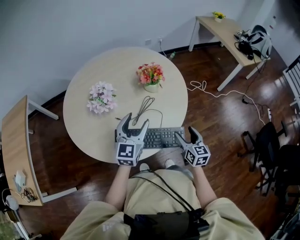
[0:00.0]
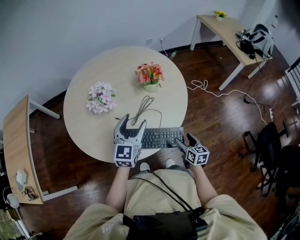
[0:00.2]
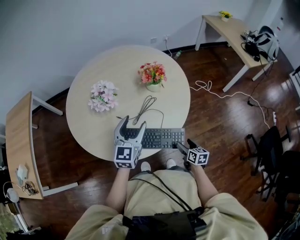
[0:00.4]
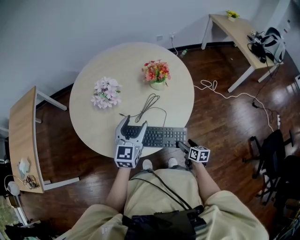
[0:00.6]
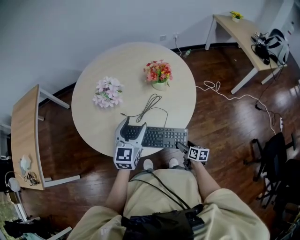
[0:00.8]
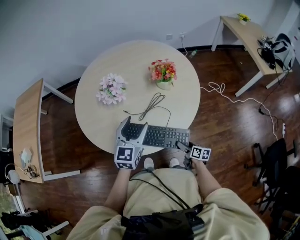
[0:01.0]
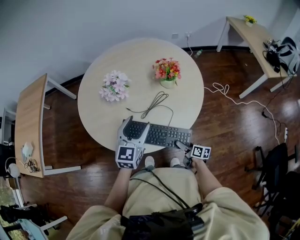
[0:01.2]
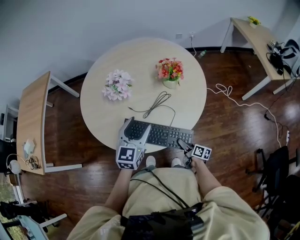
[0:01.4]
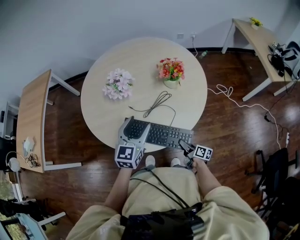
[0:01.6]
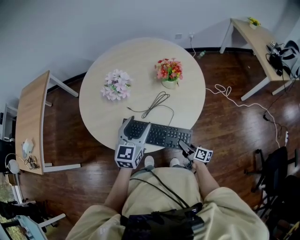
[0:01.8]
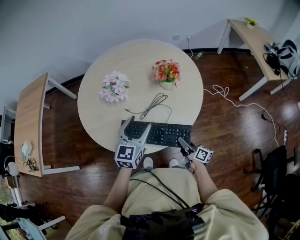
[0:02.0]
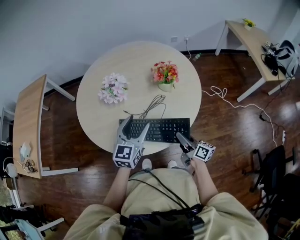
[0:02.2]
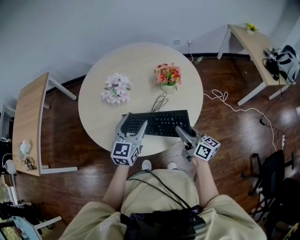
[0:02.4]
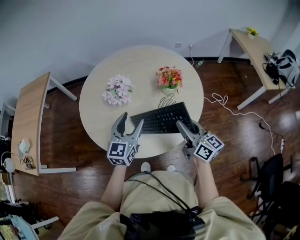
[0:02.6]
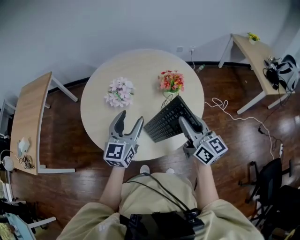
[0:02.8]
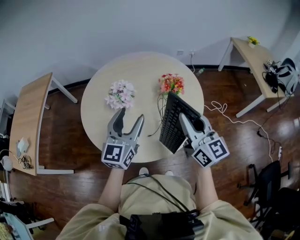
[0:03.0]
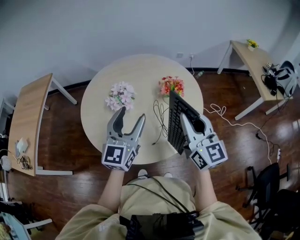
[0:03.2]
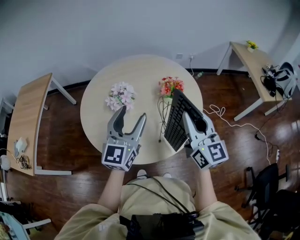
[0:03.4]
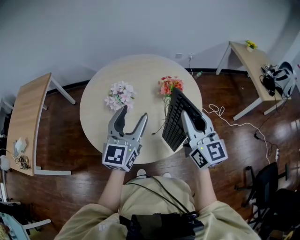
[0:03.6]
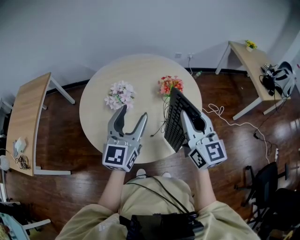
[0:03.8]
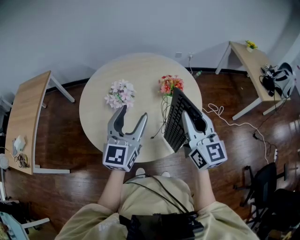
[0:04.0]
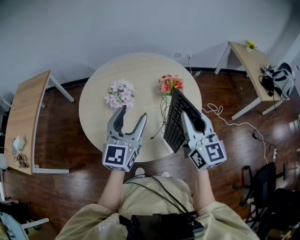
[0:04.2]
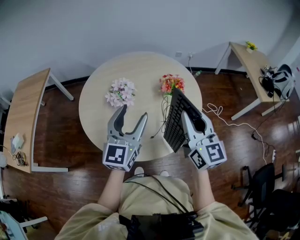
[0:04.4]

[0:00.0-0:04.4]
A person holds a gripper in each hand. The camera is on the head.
0:00.0 to 0:01.4: The right gripper is displaced downward by approximately 20 cm, and rotates around the line of its fingers by approximately 40 degrees, clockwise from behind.
0:01.4 to 0:03.0: The right gripper goes approximately 50 cm upward, rolls counterclockwise, seen from behind, by roughly 60 degrees, and closes up. Meanwhile the left gripper heads upward, covering about 15 cm.
0:03.0 to 0:04.4: There are only small adjustments of the grippers.

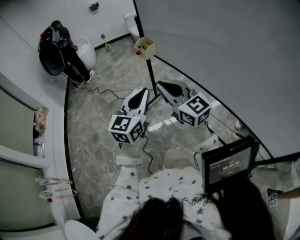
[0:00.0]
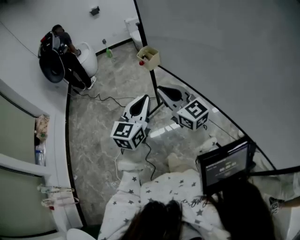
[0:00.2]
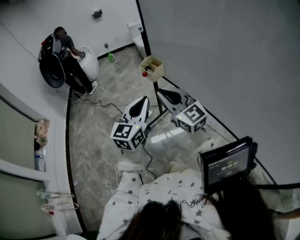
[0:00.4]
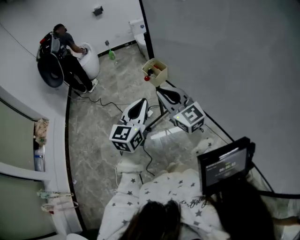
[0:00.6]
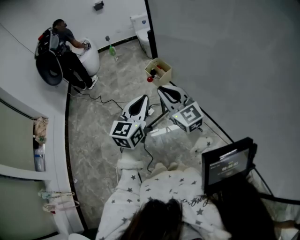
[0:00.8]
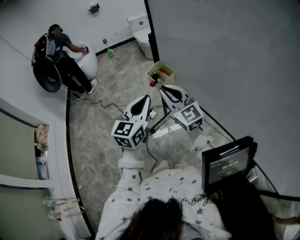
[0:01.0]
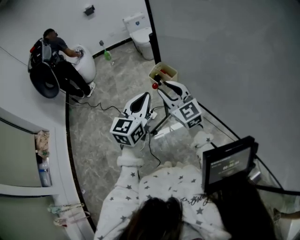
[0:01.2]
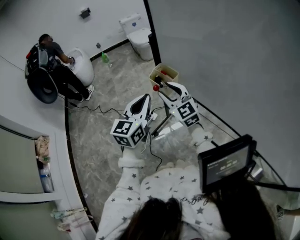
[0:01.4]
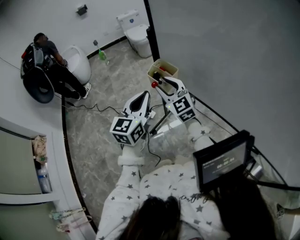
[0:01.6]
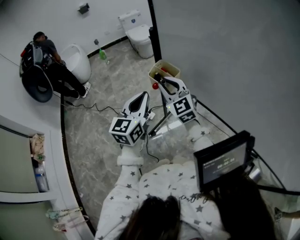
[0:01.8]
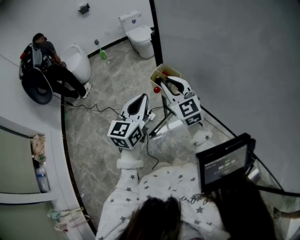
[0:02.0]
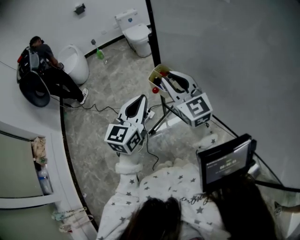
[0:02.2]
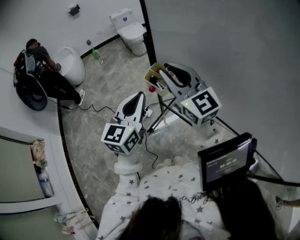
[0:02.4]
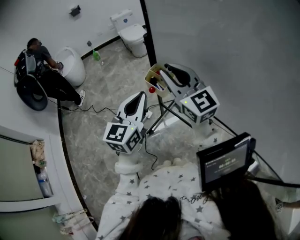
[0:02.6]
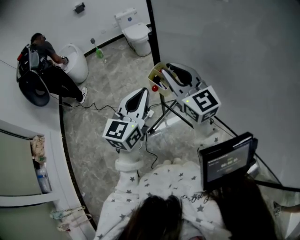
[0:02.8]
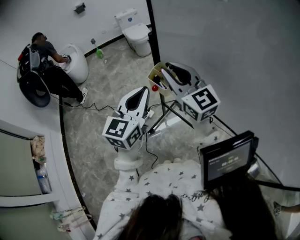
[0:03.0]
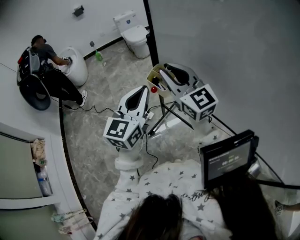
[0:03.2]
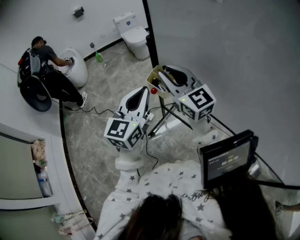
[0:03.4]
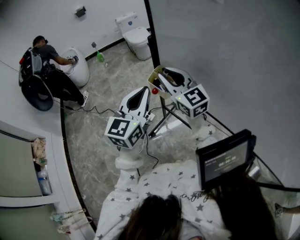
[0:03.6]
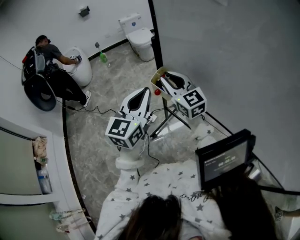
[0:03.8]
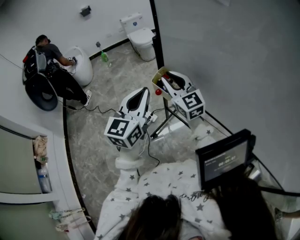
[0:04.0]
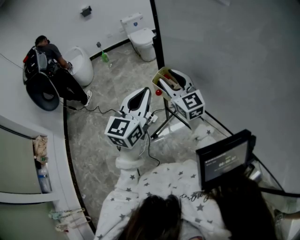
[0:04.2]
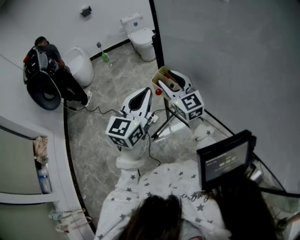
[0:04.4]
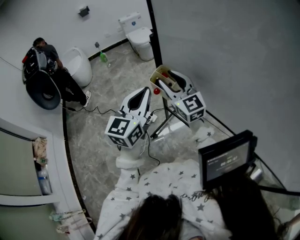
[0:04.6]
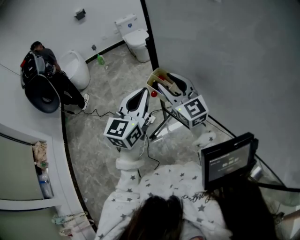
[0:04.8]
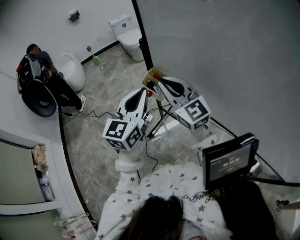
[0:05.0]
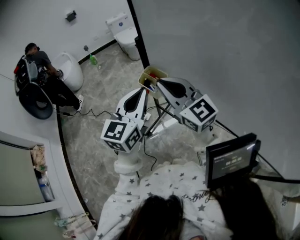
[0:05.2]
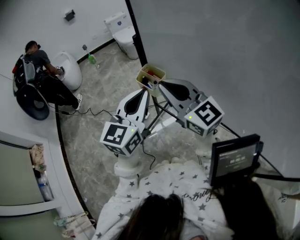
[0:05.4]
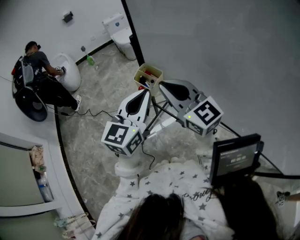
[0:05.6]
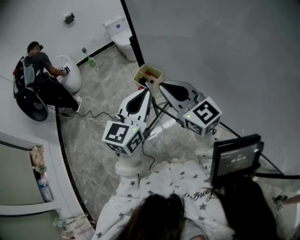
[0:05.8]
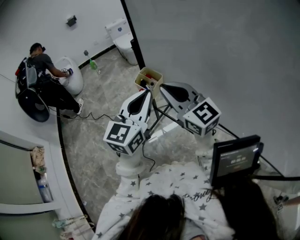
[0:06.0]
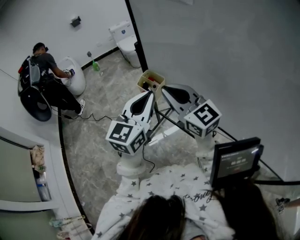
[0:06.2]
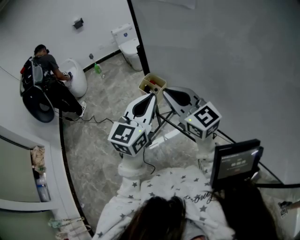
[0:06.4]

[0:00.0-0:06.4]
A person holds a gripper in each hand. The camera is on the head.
0:00.0 to 0:01.6: The grippers both shift forward by approximately 40 cm. The right gripper rotates about 30 degrees, and opens.
0:01.6 to 0:03.2: The right gripper heads upward, covering some 15 cm, while the left gripper heads upward, covering approximately 5 cm.
0:03.2 to 0:04.8: The right gripper opens up.
0:04.8 to 0:06.4: The right gripper is displaced backward by about 10 cm, and closes its fingers. Meanwhile the left gripper shifts roughly 10 cm to the right and backward.

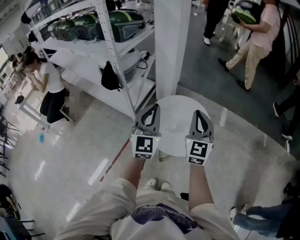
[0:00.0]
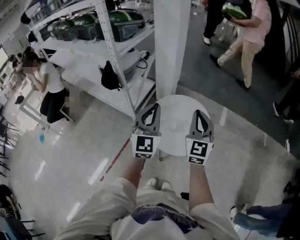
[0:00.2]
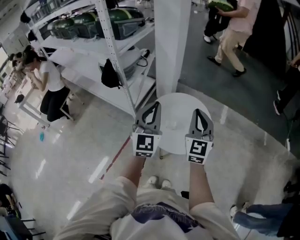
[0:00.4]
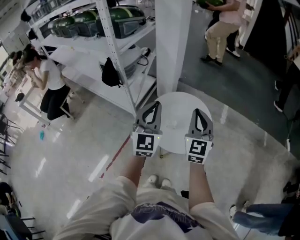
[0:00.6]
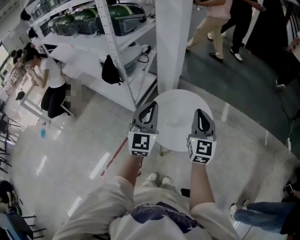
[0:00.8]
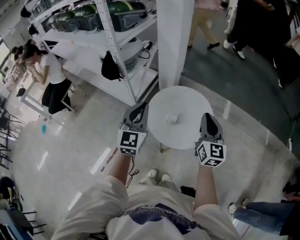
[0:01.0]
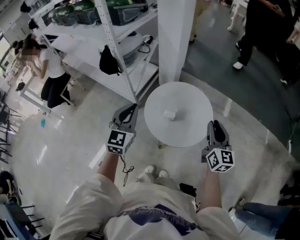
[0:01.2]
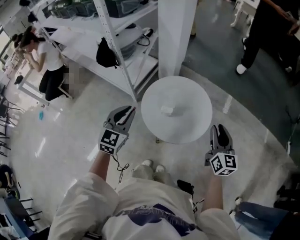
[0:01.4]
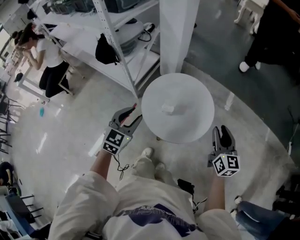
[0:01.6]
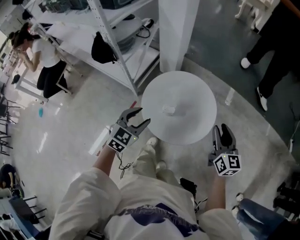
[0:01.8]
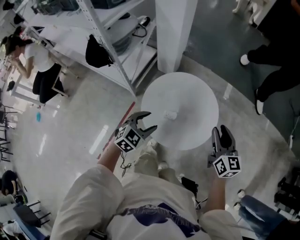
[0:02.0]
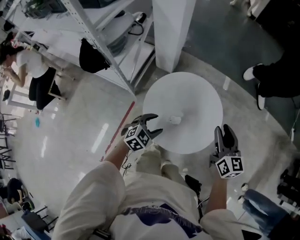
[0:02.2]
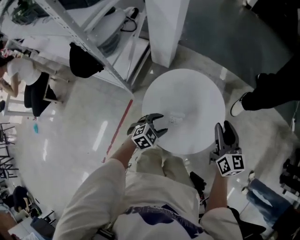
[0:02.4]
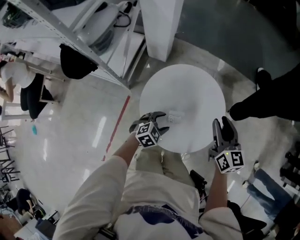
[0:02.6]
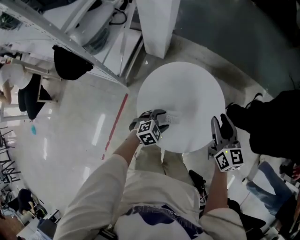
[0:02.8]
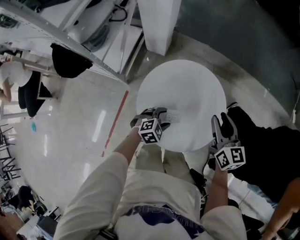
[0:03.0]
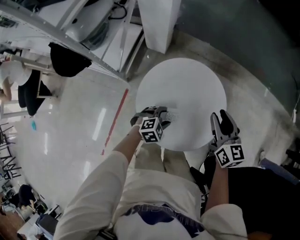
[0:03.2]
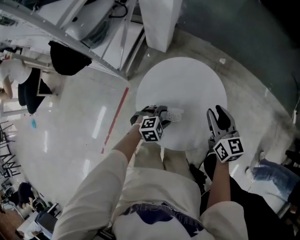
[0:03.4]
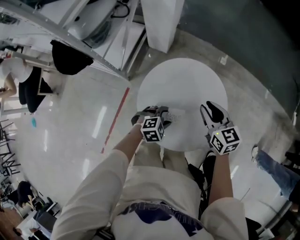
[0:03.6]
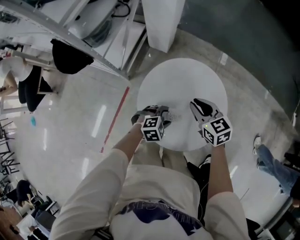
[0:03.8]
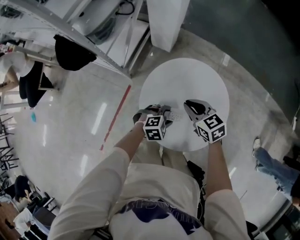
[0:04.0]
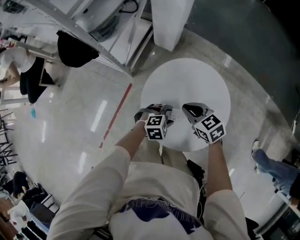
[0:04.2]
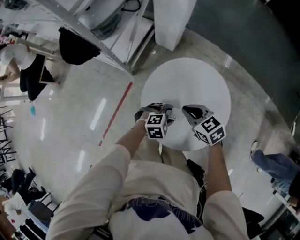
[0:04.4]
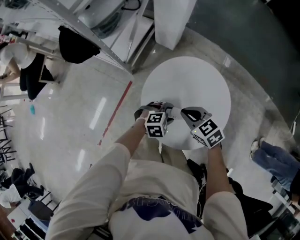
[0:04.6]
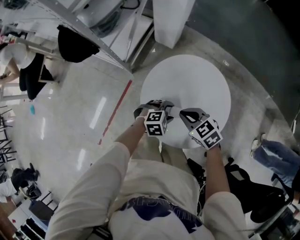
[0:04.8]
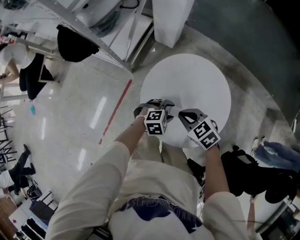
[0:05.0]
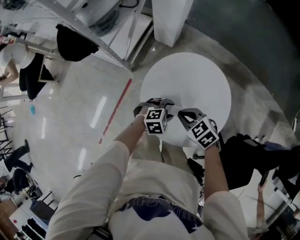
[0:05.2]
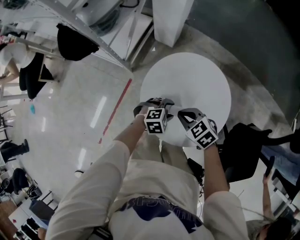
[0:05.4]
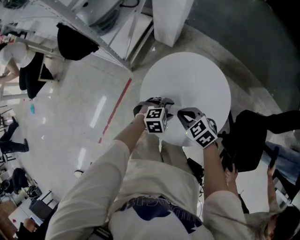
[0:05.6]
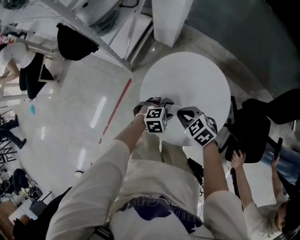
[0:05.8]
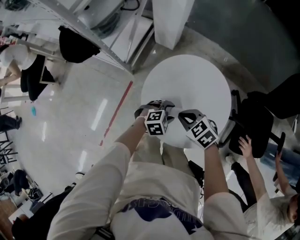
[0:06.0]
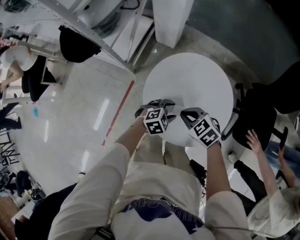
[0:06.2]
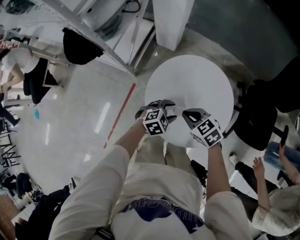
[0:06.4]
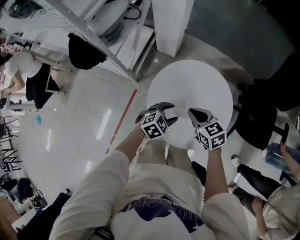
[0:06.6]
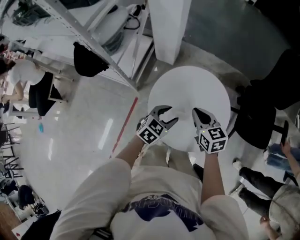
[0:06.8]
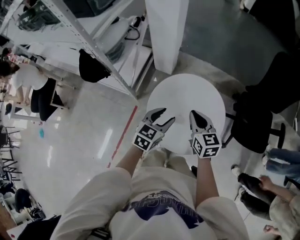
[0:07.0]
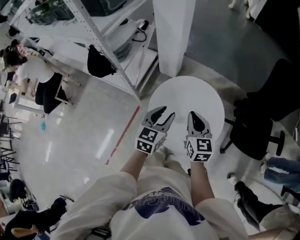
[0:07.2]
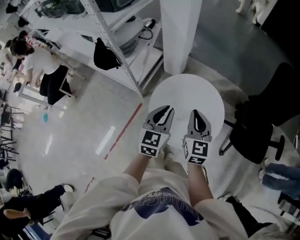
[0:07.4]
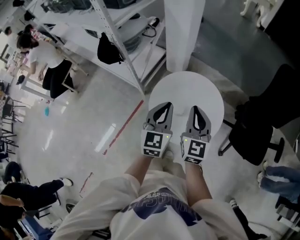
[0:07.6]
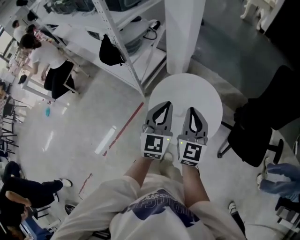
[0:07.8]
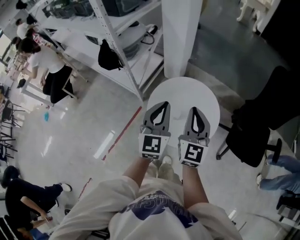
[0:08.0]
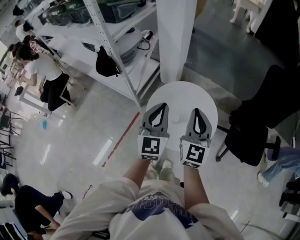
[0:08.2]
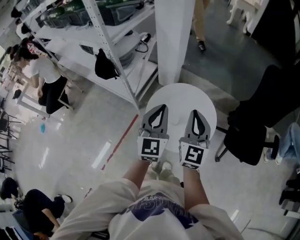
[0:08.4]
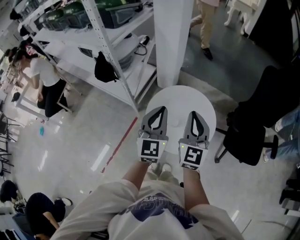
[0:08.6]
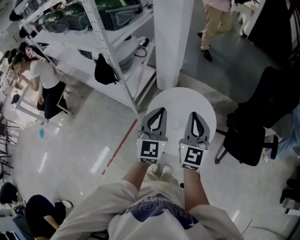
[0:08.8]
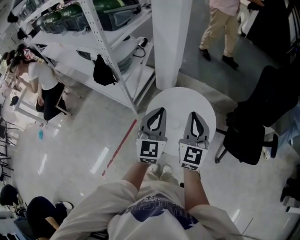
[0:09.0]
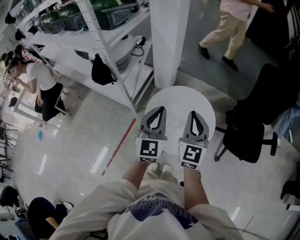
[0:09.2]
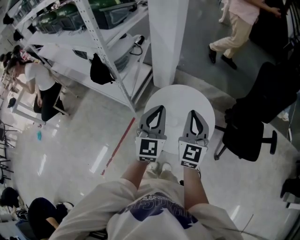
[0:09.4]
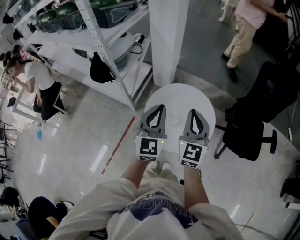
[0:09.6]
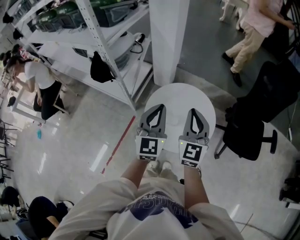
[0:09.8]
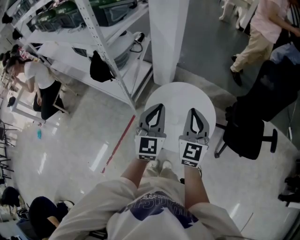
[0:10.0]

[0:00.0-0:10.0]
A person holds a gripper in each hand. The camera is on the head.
0:00.0 to 0:01.4: The left gripper heads downward, covering about 10 cm, and changes its angle by some 20 degrees; the right gripper heads to the right and downward, covering some 20 cm, rotates approximately 30 degrees, and opens.
0:01.4 to 0:02.8: The right gripper moves about 20 cm; the left gripper heads downward, covering about 30 cm, angles its fingers downward, by about 40 degrees, and opens up.
0:02.8 to 0:04.2: The right gripper ends up some 20 cm from where it was, rotates roughly 50 degrees, and closes.
0:04.2 to 0:05.8: The right gripper shifts by roughly 5 cm.
0:05.8 to 0:07.2: The grippers both shift upward by about 20 cm. The left gripper points its fingers some 40 degrees further upward. The right gripper tilts its fingers about 40 degrees upward.
0:07.2 to 0:08.6: The two grippers go roughly 15 cm upward and backward. The right gripper rotates about 30 degrees, while the left gripper turns by roughly 30 degrees, and closes up.
0:08.6 to 0:10.0: The grippers move only a little.

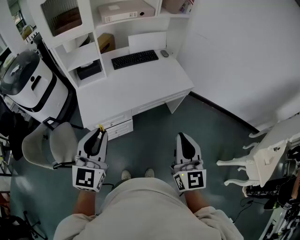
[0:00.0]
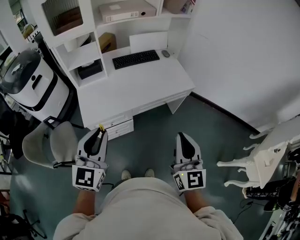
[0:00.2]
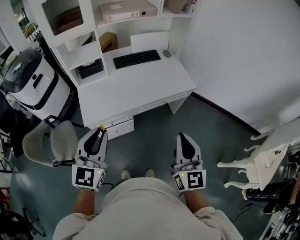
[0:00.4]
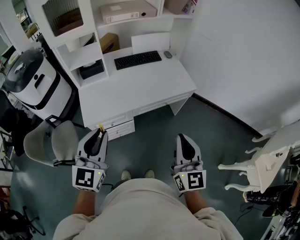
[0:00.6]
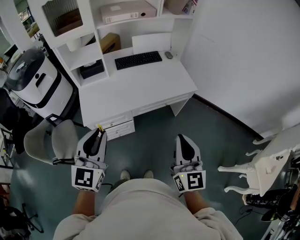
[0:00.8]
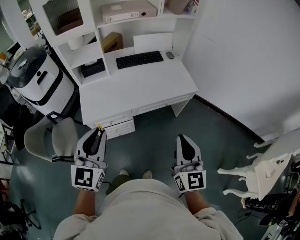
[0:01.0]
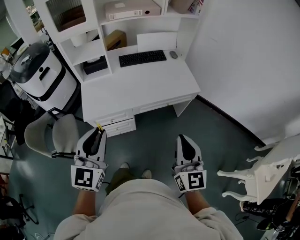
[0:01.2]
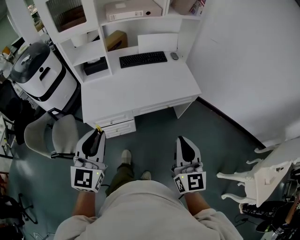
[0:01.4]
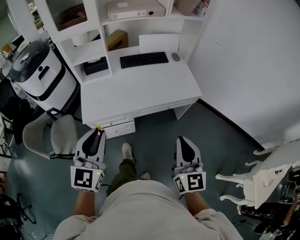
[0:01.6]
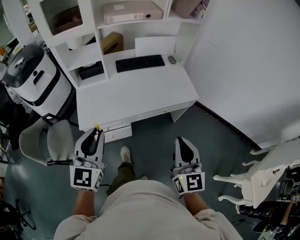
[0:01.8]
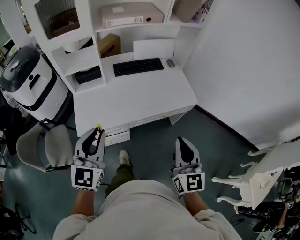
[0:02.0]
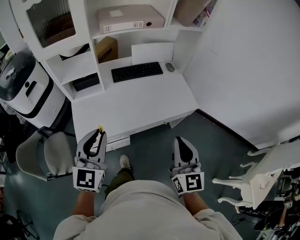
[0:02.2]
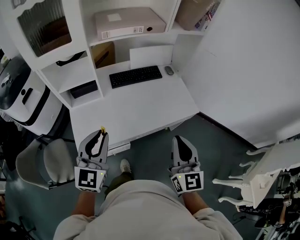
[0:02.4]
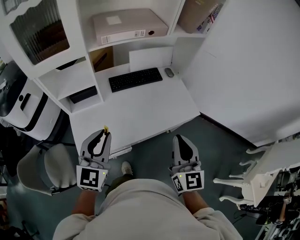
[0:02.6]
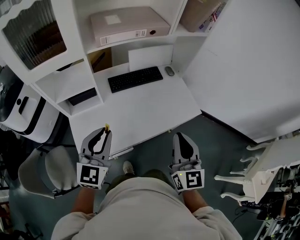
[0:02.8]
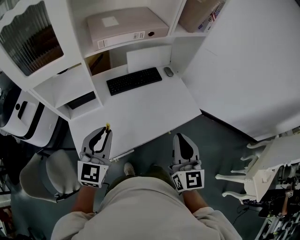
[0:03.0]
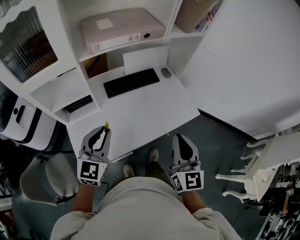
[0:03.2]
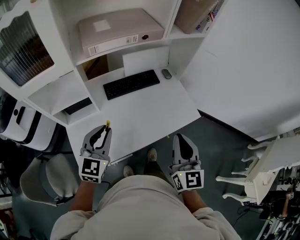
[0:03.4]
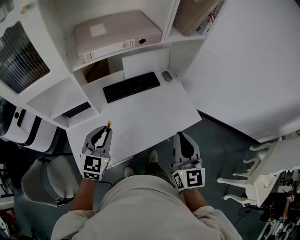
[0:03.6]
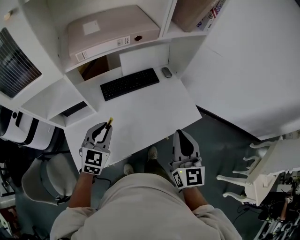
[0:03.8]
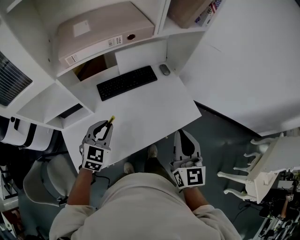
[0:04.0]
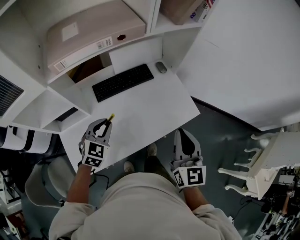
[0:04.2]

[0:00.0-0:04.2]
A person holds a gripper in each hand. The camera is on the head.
0:00.0 to 0:01.4: The two grippers go some 5 cm to the right.
0:01.4 to 0:02.8: The grippers both shift forward by approximately 30 cm.
0:02.8 to 0:04.2: The left gripper travels forward and downward by some 25 cm, and turns by some 30 degrees. Meanwhile the right gripper heads forward and to the right, covering approximately 15 cm.
